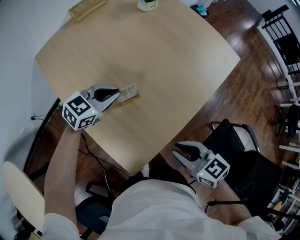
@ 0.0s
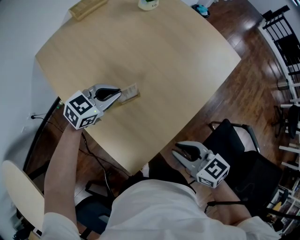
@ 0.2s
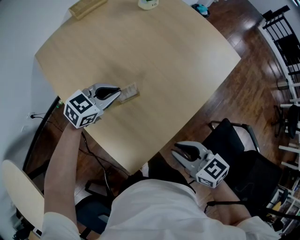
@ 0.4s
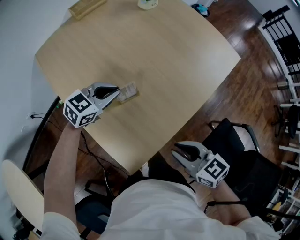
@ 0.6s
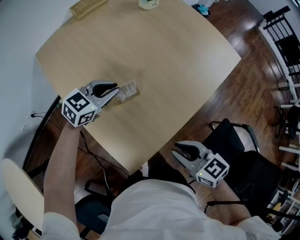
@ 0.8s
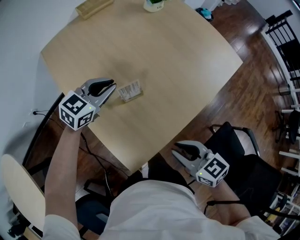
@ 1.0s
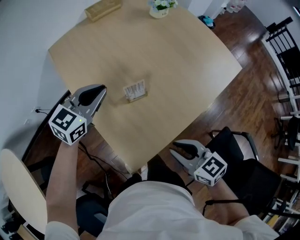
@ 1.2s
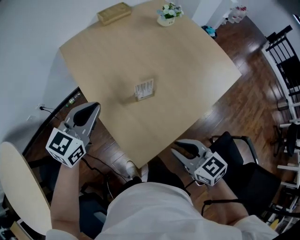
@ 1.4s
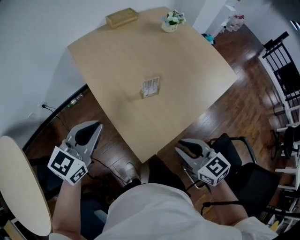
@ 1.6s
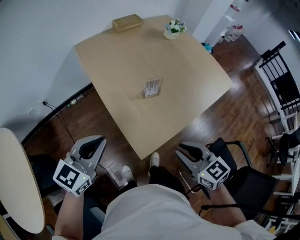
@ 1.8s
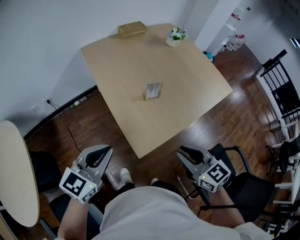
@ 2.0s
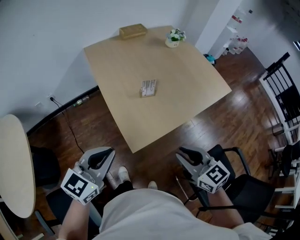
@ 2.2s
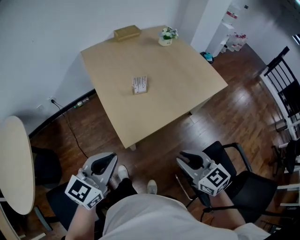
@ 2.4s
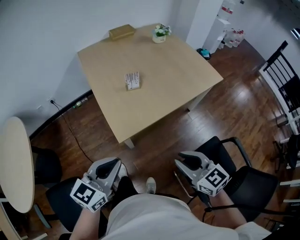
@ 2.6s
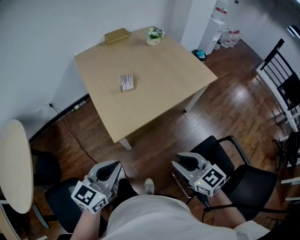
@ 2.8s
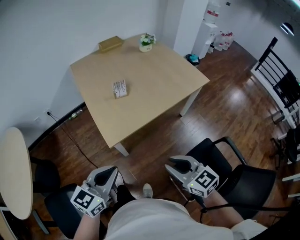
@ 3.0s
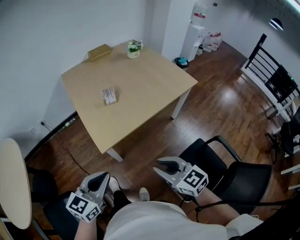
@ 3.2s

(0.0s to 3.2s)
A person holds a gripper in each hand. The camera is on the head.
0.0s - 1.6s: The right gripper shifts roughly 10 cm to the left, upward and backward; the left gripper shifts some 30 cm backward, upward and to the left, and rotates some 30 degrees.
1.6s - 3.2s: Both grippers travel together backward and to the right, roughly 35 cm.

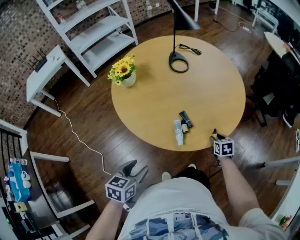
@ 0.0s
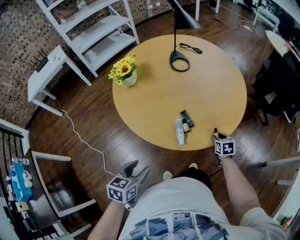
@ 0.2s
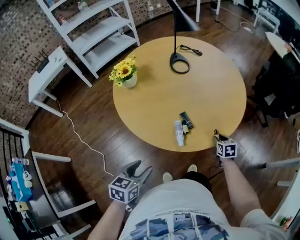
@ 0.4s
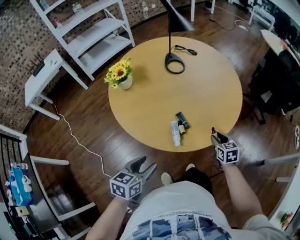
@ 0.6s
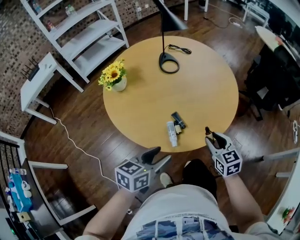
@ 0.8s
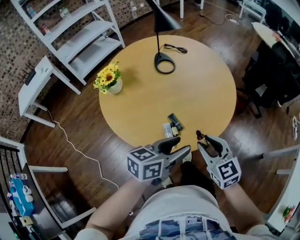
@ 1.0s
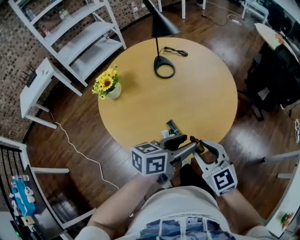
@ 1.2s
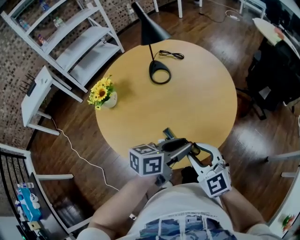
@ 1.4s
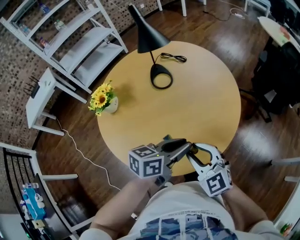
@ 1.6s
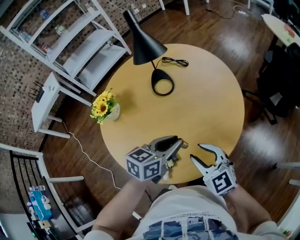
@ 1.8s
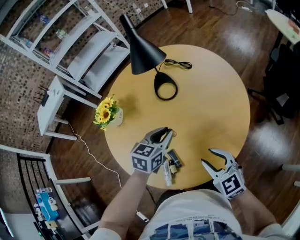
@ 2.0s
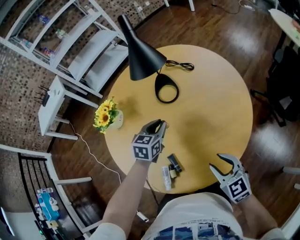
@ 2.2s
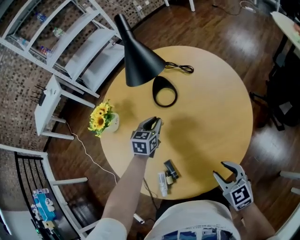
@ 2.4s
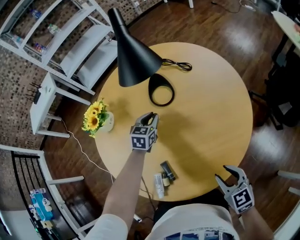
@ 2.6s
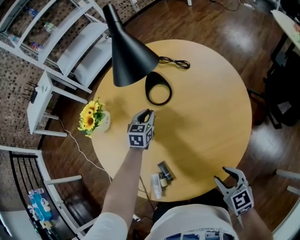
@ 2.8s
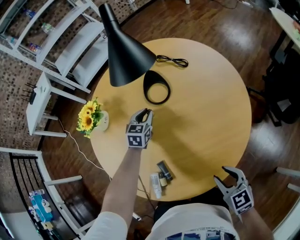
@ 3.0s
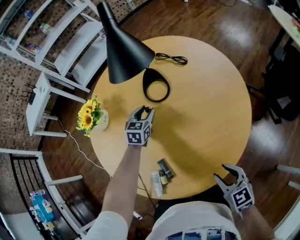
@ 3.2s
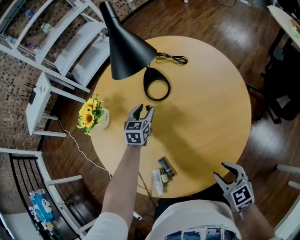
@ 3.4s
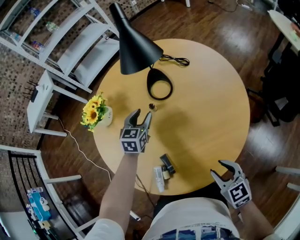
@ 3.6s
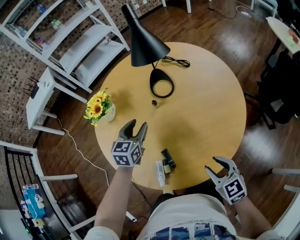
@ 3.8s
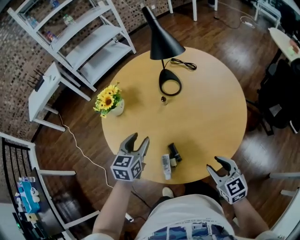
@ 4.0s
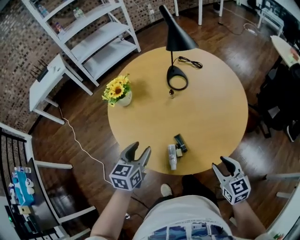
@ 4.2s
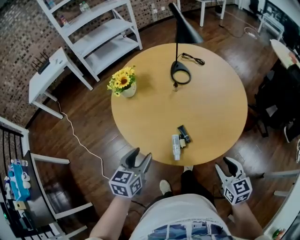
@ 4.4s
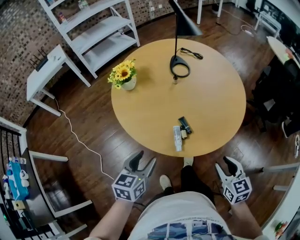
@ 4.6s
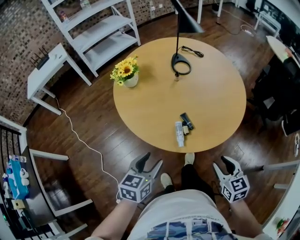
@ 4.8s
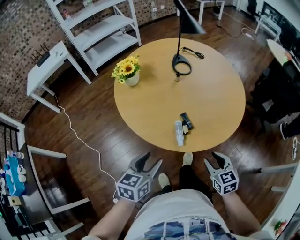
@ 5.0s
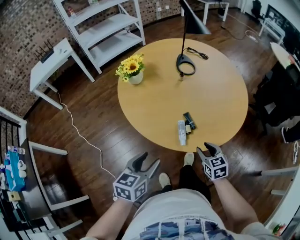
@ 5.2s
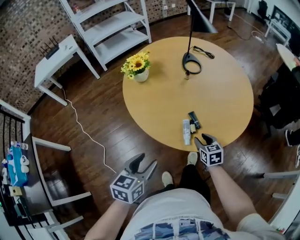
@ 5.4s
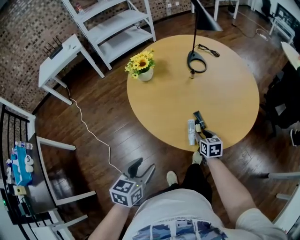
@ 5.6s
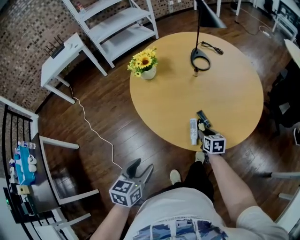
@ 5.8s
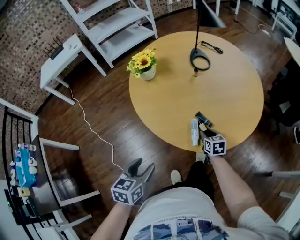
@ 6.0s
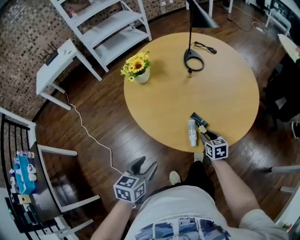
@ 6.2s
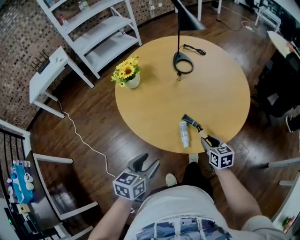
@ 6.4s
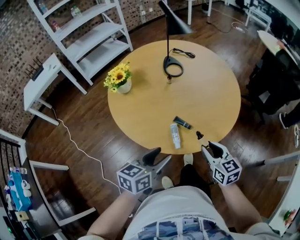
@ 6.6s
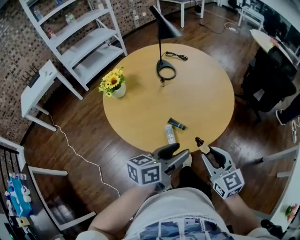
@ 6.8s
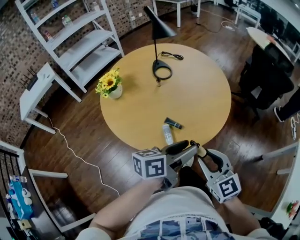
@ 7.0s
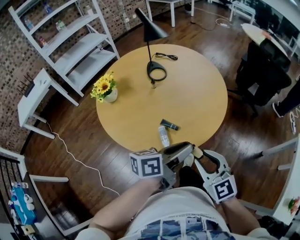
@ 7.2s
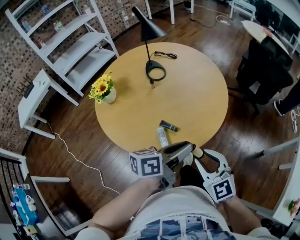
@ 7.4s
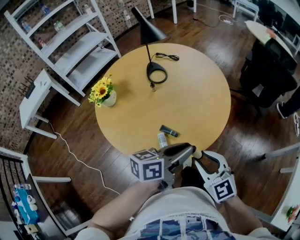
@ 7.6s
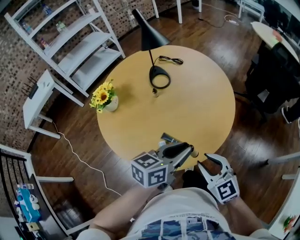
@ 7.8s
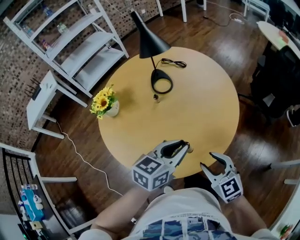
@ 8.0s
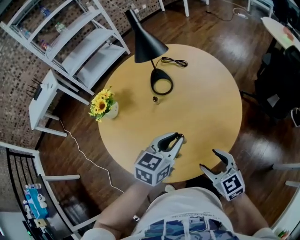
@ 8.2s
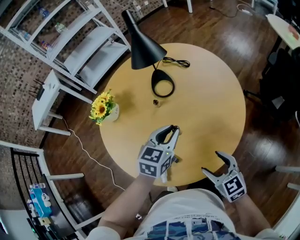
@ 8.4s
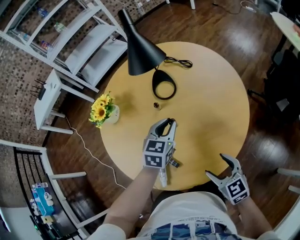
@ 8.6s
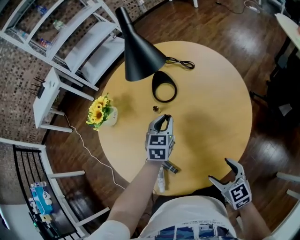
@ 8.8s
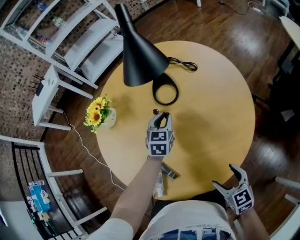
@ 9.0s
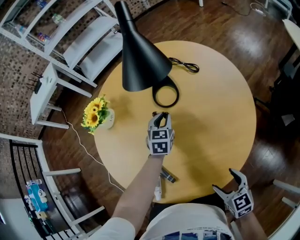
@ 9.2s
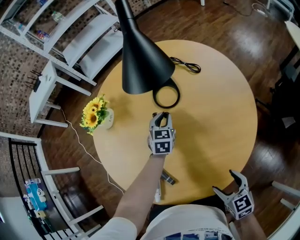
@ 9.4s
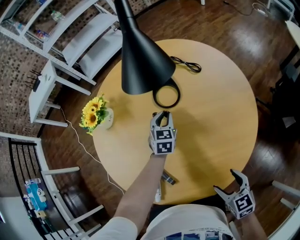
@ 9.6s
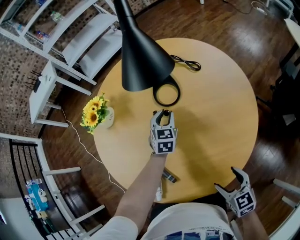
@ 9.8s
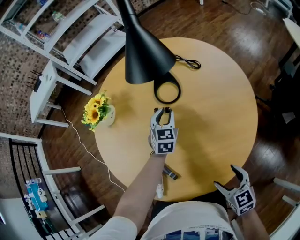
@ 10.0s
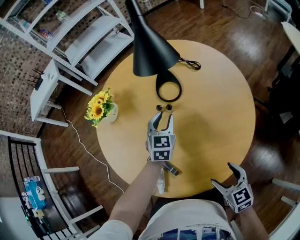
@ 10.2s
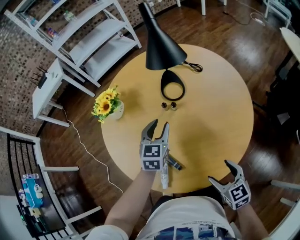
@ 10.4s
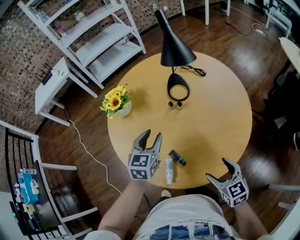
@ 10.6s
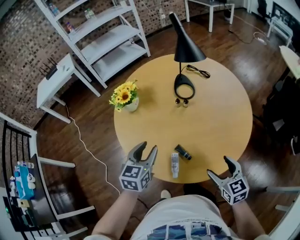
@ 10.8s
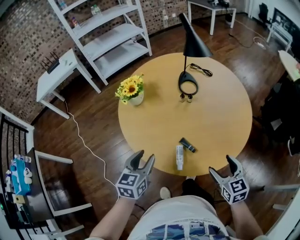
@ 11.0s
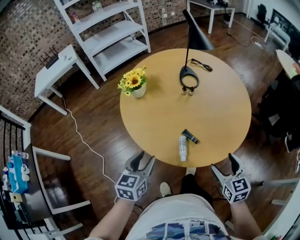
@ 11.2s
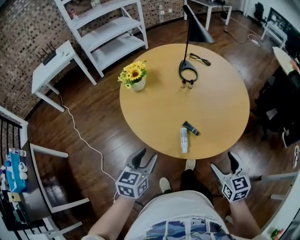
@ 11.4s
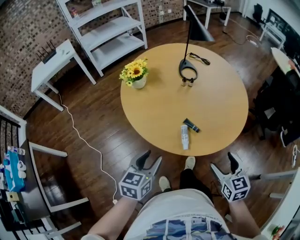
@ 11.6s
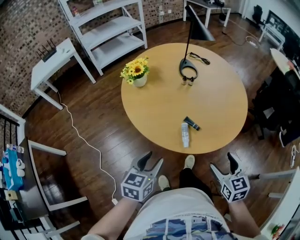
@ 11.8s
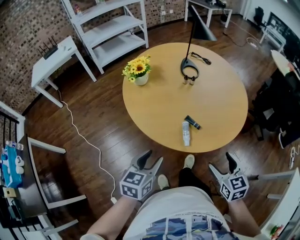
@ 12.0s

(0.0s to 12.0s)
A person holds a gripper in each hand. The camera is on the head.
0.0s - 1.6s: The left gripper travels forward and to the right by about 40 cm, swivels roughly 40 degrees, and closes. Meanwhile the right gripper heads upward, covering approximately 25 cm, and points its fingers roughly 30 degrees further upward.
1.6s - 3.0s: The right gripper moves to the right and downward, approximately 20 cm, and changes its angle by about 30 degrees; the left gripper heads forward and downward, covering roughly 40 cm, and rotates approximately 50 degrees.
3.0s - 4.4s: The right gripper travels backward, to the left and upward by about 25 cm. The left gripper goes approximately 50 cm backward and to the left, and opens its fingers.
4.4s - 6.0s: The left gripper goes approximately 15 cm backward and to the left; the right gripper heads downward, to the left and forward, covering approximately 25 cm.
6.0s - 7.6s: The right gripper goes some 25 cm upward, and changes its angle by about 40 degrees. Meanwhile the left gripper ends up about 35 cm from where it was, turns by some 50 degrees, and closes its fingers.
7.6s - 9.0s: The left gripper changes place by about 50 cm, and rotates roughly 60 degrees; the right gripper shifts by some 30 cm, swivels about 30 degrees, and opens.
9.0s - 10.4s: The left gripper heads to the left, backward and upward, covering approximately 15 cm; the right gripper heads to the left, covering roughly 5 cm.
10.4s - 12.0s: The right gripper moves backward and to the left, roughly 30 cm. The left gripper goes roughly 50 cm backward and to the left, and rotates roughly 20 degrees.

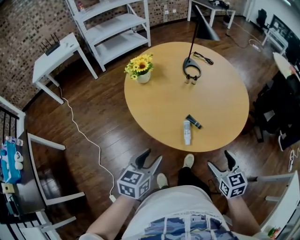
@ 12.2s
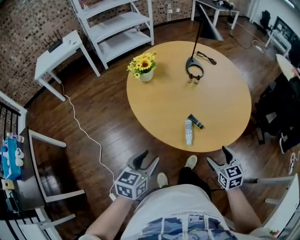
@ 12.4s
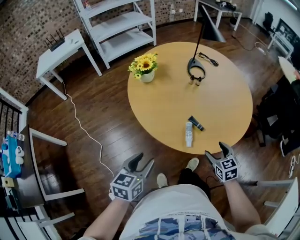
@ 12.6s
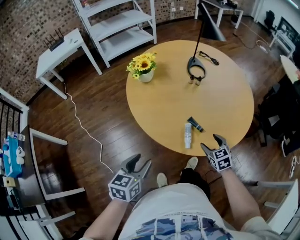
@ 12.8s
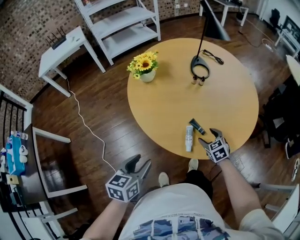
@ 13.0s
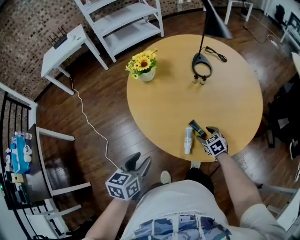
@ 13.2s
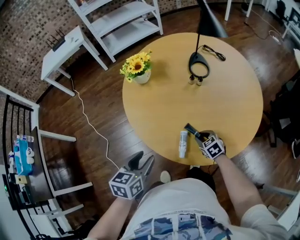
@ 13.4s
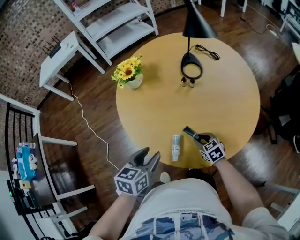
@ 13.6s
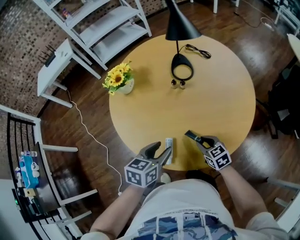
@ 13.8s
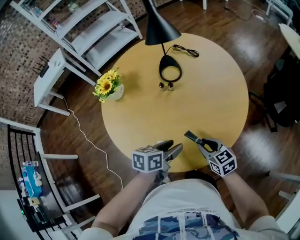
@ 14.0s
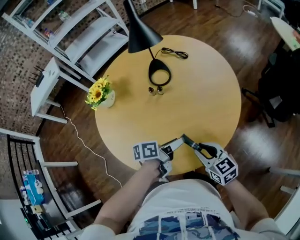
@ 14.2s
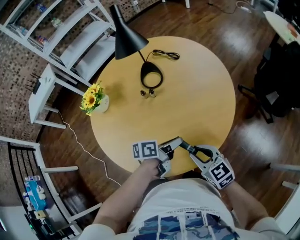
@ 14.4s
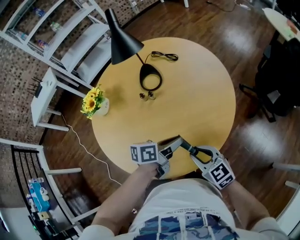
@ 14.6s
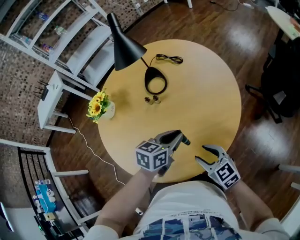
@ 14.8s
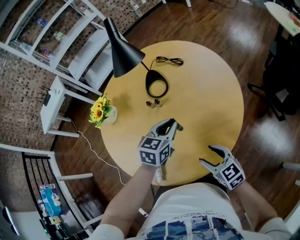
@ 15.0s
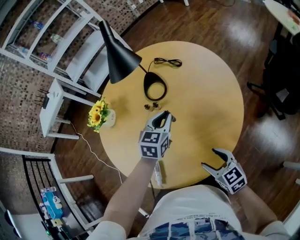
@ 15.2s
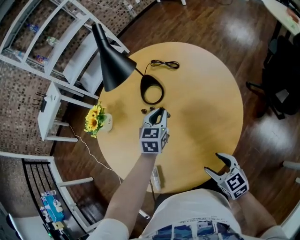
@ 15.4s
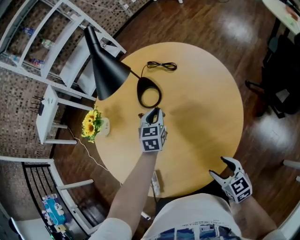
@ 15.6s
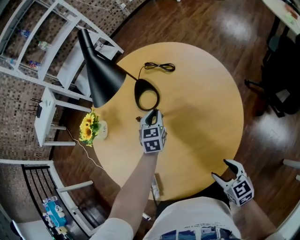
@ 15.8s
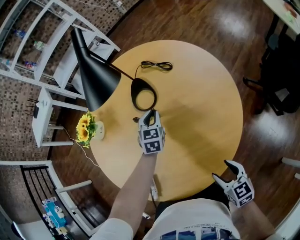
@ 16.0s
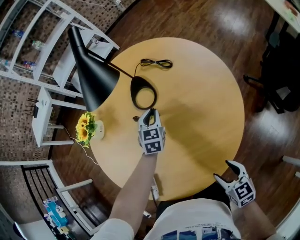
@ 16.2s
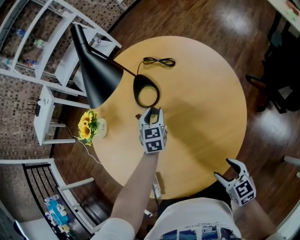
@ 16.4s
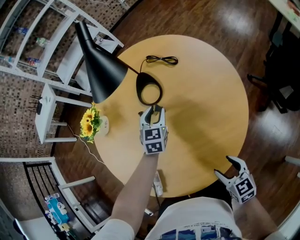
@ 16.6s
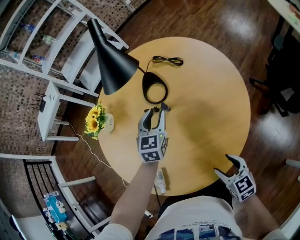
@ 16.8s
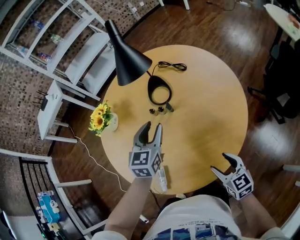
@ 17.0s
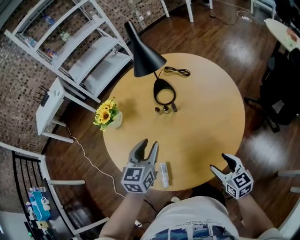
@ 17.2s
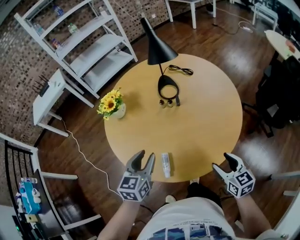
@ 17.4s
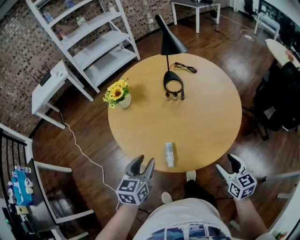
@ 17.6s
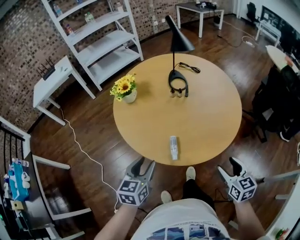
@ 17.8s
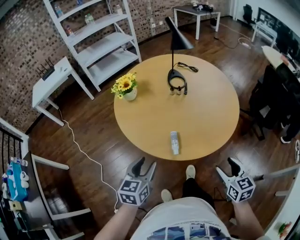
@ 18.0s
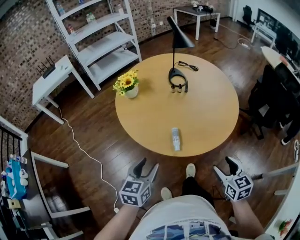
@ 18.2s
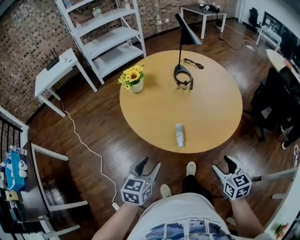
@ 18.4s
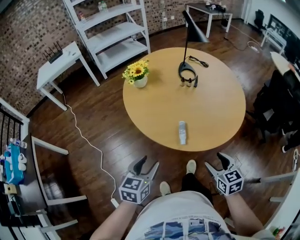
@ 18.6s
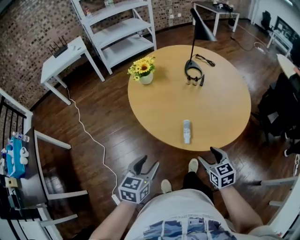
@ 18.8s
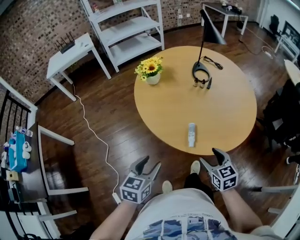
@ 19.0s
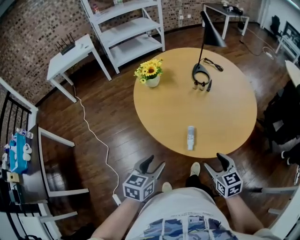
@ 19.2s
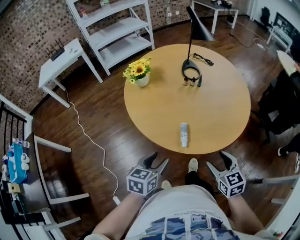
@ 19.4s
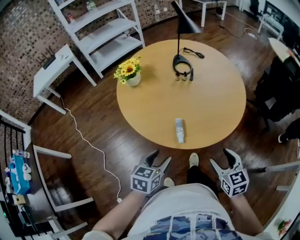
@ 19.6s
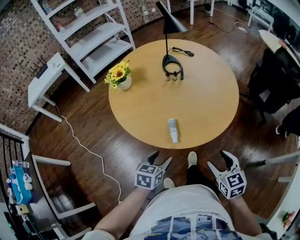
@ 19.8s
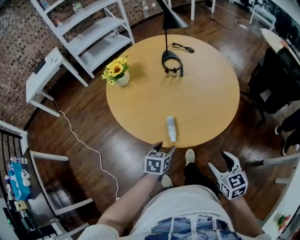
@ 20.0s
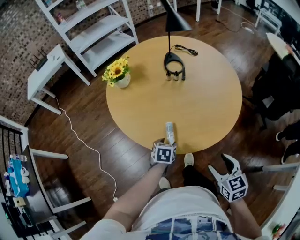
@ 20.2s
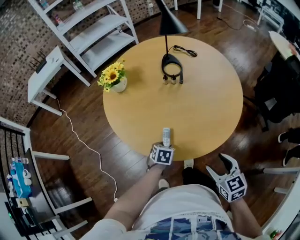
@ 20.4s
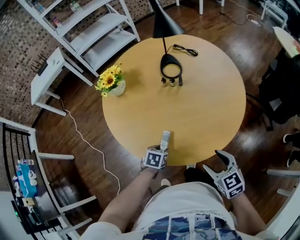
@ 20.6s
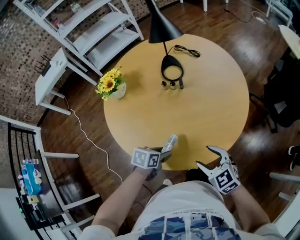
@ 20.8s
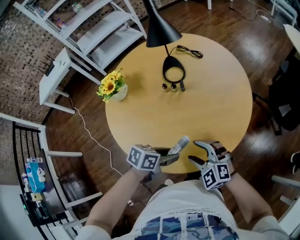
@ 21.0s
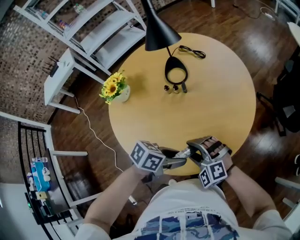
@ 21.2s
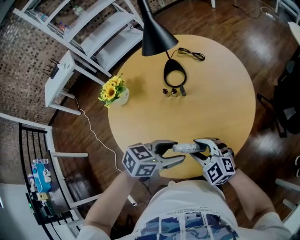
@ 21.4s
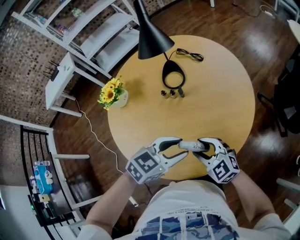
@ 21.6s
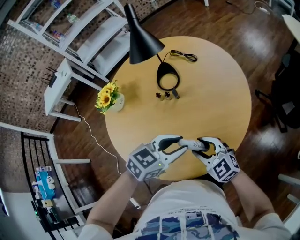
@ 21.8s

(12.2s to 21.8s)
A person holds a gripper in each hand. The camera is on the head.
12.2s - 13.8s: The left gripper travels to the right and forward by roughly 25 cm. Meanwhile the right gripper heads forward and downward, covering about 25 cm, rotates about 20 degrees, and closes up.
13.8s - 15.4s: The right gripper goes about 20 cm to the right, and opens its fingers; the left gripper goes about 35 cm forward and to the right, turns by about 30 degrees, and closes.
15.4s - 17.0s: The left gripper goes approximately 10 cm to the left and upward, and opens up.
17.0s - 18.6s: The right gripper is displaced backward and to the left by some 35 cm. Meanwhile the left gripper moves backward and to the left, approximately 50 cm.
18.6s - 20.2s: The right gripper shifts approximately 5 cm to the right, while the left gripper moves downward, forward and to the right, approximately 30 cm, and swivels approximately 30 degrees.
20.2s - 21.8s: The left gripper shifts by about 35 cm, swivels approximately 40 degrees, and closes its fingers; the right gripper ends up about 25 cm from where it was, and rotates roughly 40 degrees.
